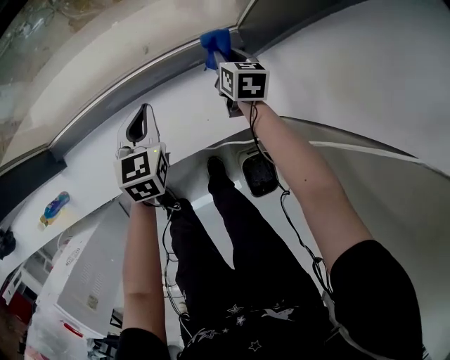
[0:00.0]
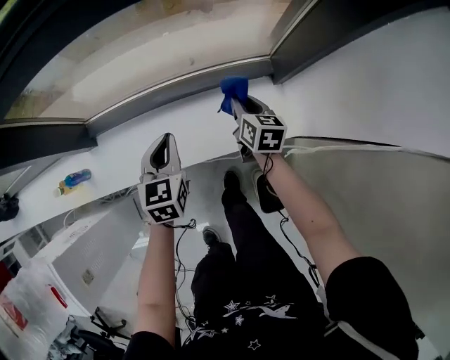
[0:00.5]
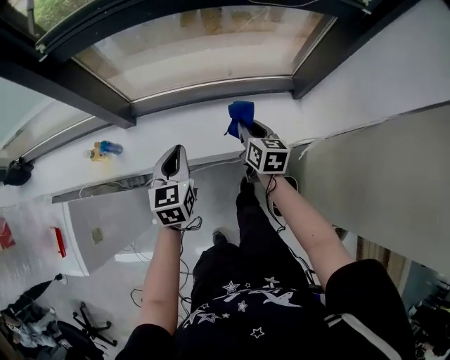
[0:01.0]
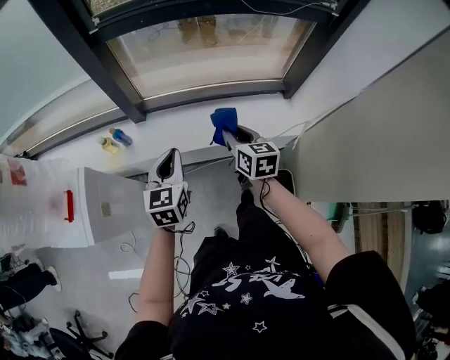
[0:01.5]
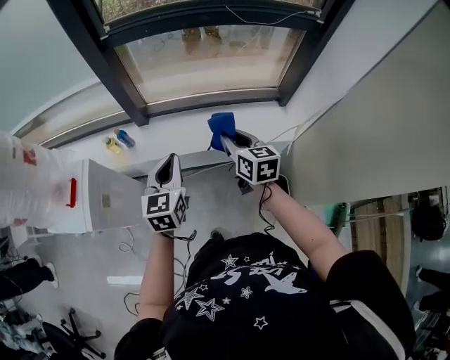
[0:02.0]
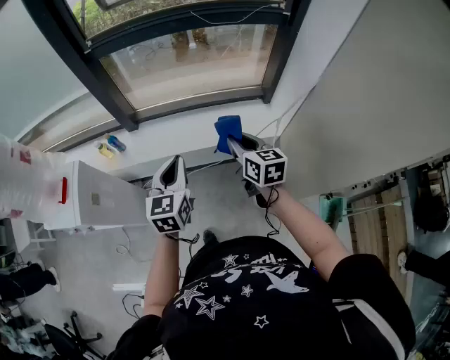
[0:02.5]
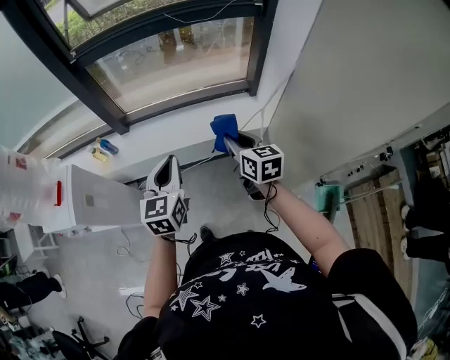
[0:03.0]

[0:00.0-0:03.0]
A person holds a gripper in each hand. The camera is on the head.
0.0 to 1.5 s: Both grippers are carried backward and to the left, approximately 50 cm. The two grippers go approximately 30 cm upward. The right gripper rotates roughly 20 degrees.
1.5 to 3.0 s: The two grippers go some 25 cm backward, to the right and upward.

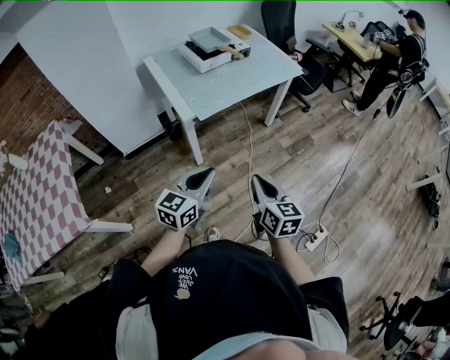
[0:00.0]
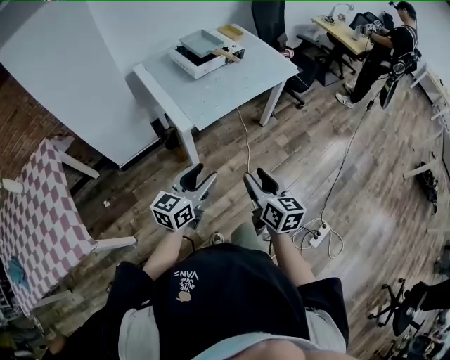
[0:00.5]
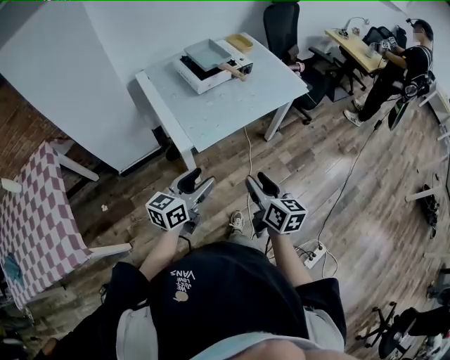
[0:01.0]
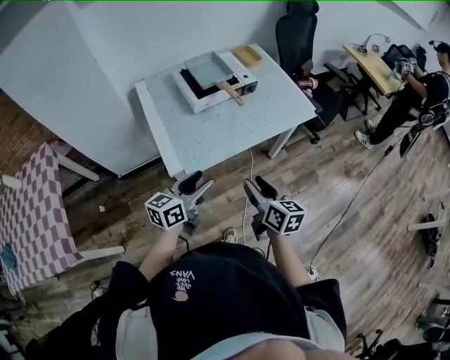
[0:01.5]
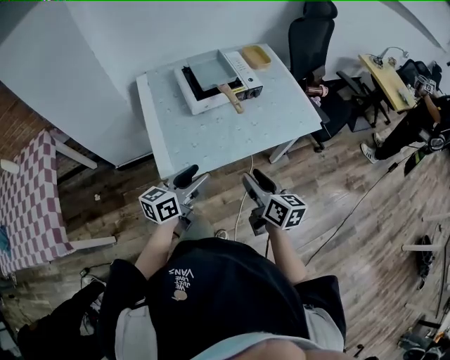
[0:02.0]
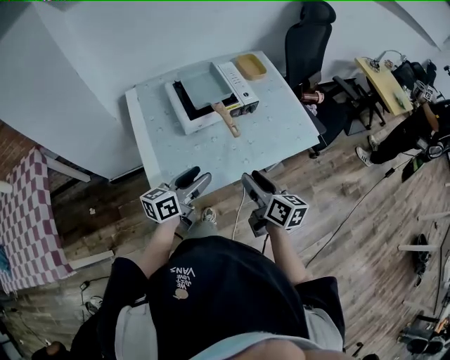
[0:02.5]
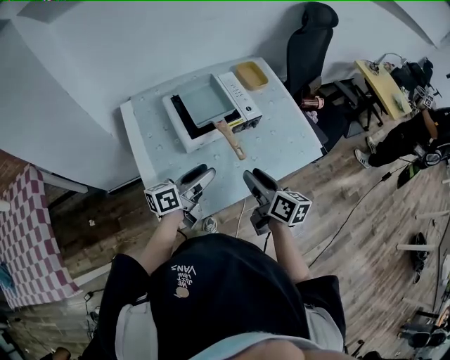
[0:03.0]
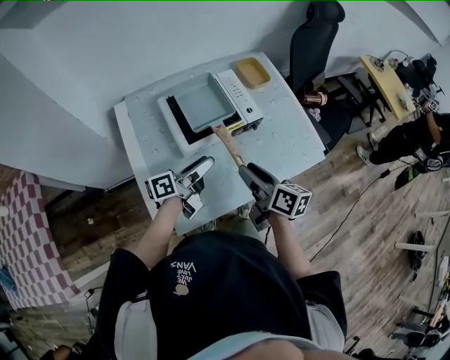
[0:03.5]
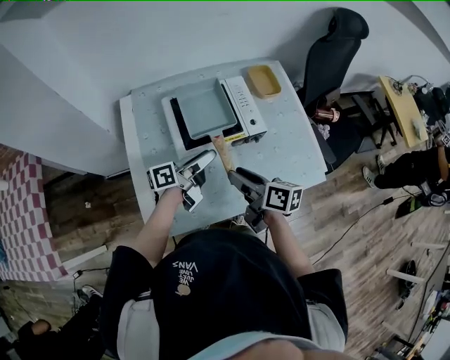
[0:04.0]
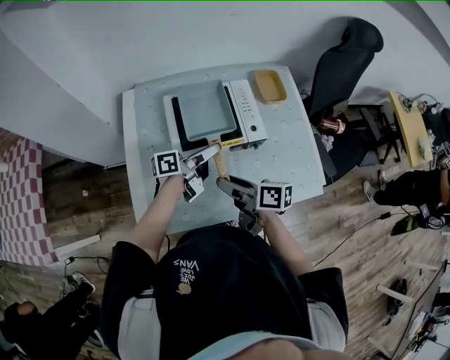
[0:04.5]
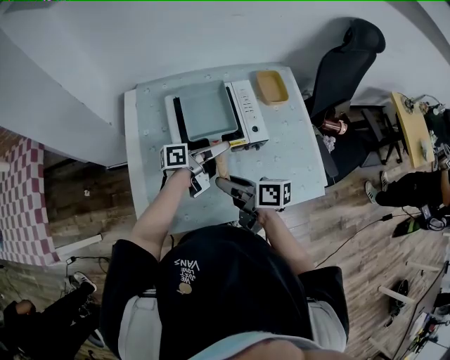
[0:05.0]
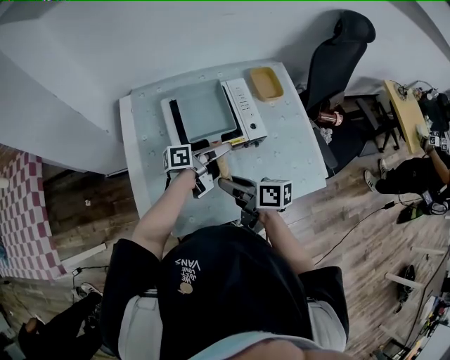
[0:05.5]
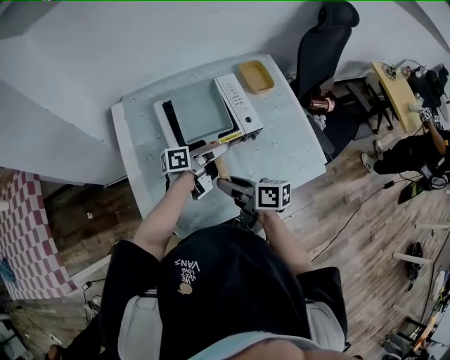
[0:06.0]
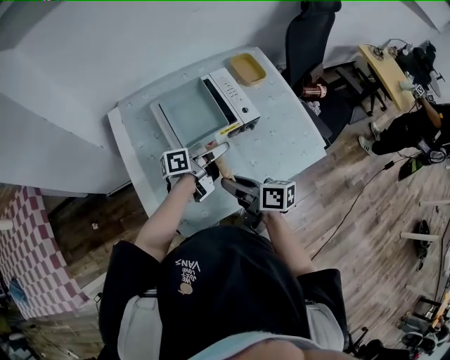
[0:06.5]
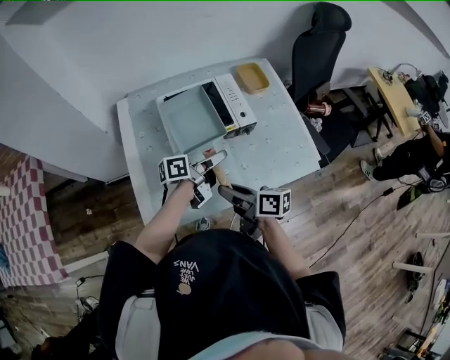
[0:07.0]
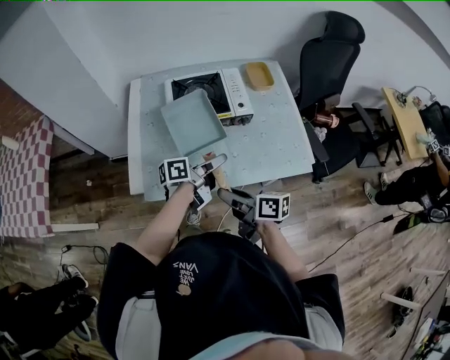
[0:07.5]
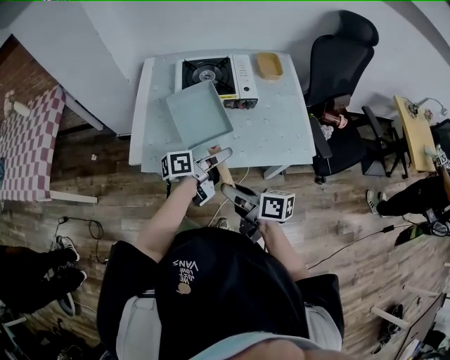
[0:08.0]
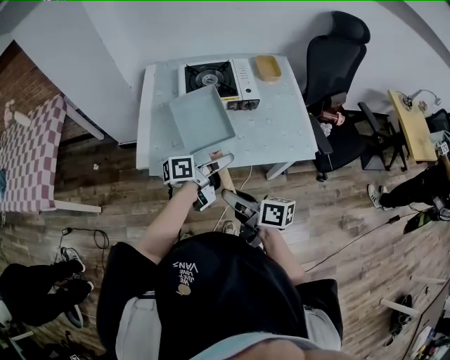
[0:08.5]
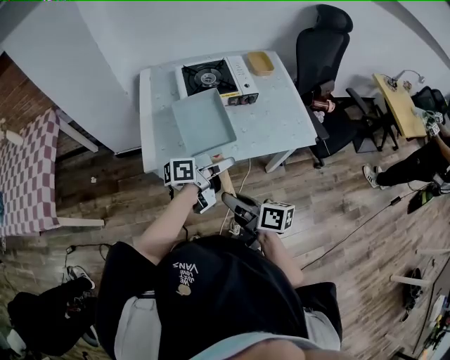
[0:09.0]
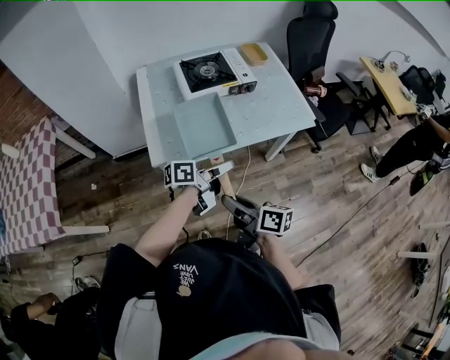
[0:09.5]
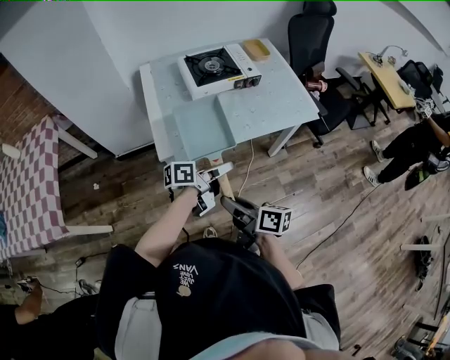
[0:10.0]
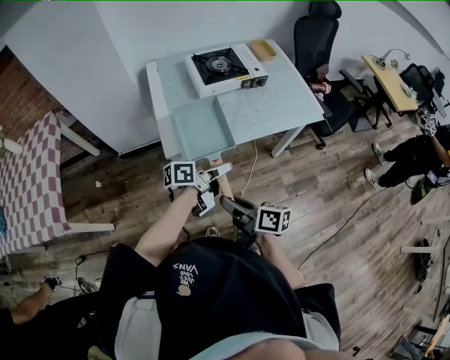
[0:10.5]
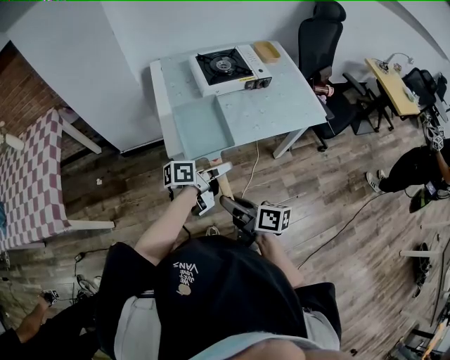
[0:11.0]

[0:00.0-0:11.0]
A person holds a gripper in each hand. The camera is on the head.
0.0 to 2.0 s: Both grippers move forward, approximately 35 cm. The left gripper rotates some 20 degrees, and opens. Meanwhile the right gripper rotates about 20 degrees, and opens.
2.0 to 3.5 s: The two grippers go some 20 cm forward. The left gripper turns by some 30 degrees.
3.5 to 5.5 s: The right gripper ends up some 5 cm from where it was, and rotates about 30 degrees; the left gripper travels forward and to the right by roughly 15 cm.
5.5 to 7.5 s: The right gripper is displaced backward and to the right by approximately 15 cm, while the left gripper heads backward, covering approximately 15 cm.
7.5 to 9.0 s: The two grippers go about 15 cm backward.
9.0 to 11.0 s: The grippers both shift to the left and backward by about 15 cm.

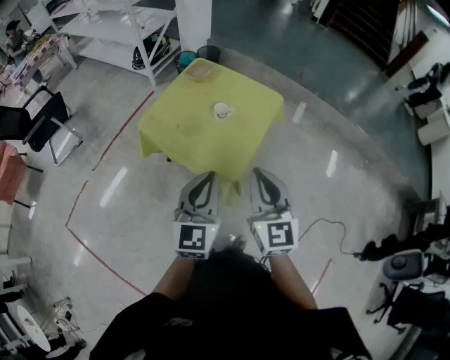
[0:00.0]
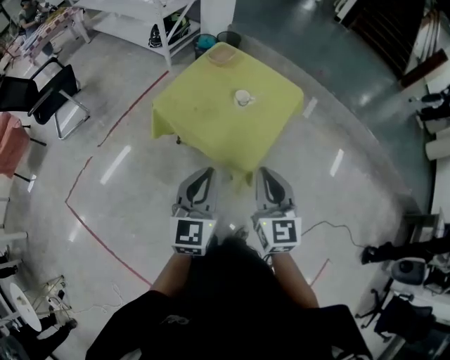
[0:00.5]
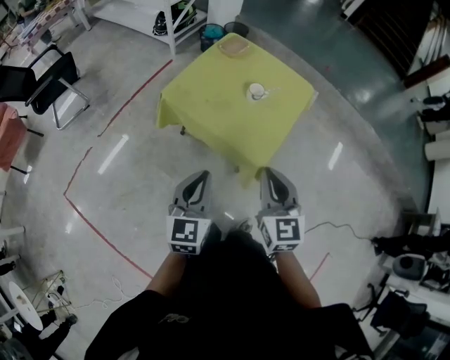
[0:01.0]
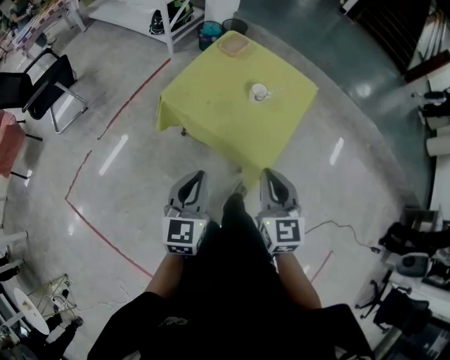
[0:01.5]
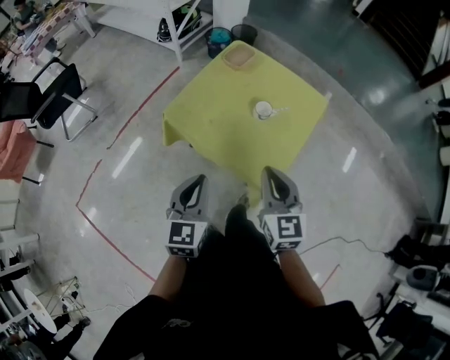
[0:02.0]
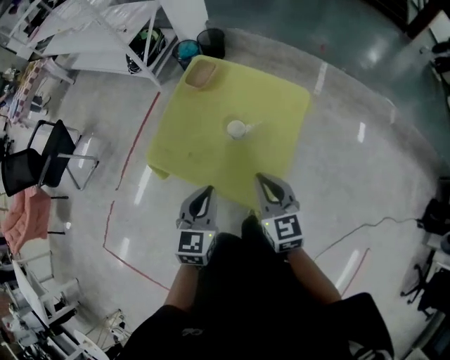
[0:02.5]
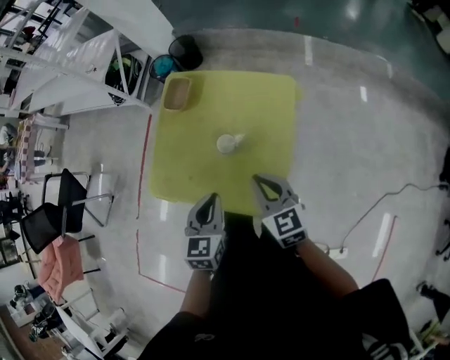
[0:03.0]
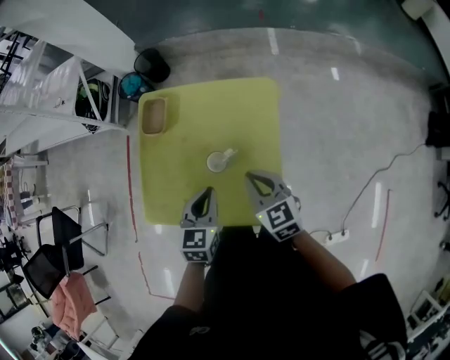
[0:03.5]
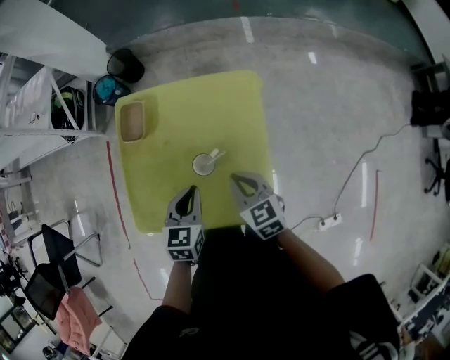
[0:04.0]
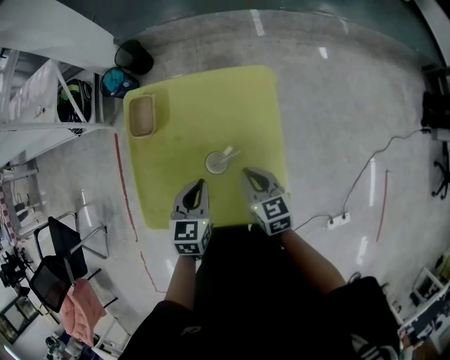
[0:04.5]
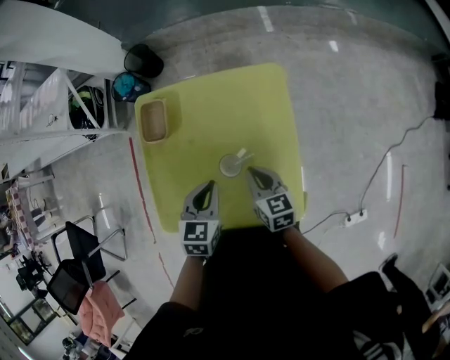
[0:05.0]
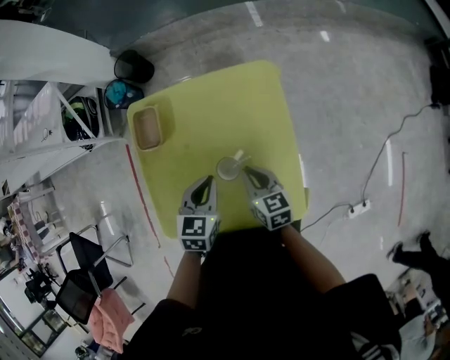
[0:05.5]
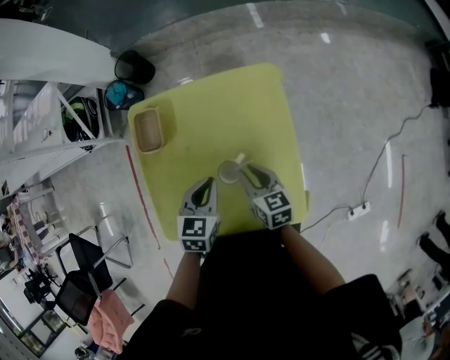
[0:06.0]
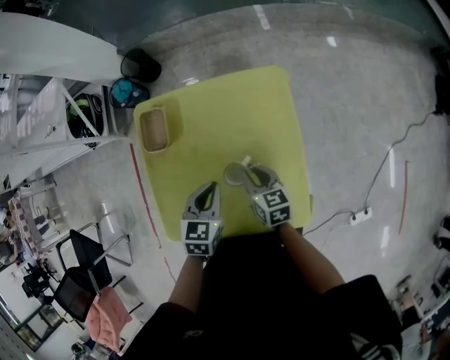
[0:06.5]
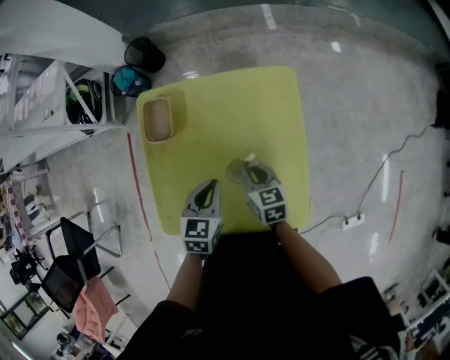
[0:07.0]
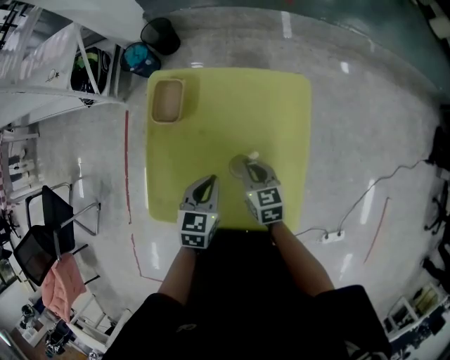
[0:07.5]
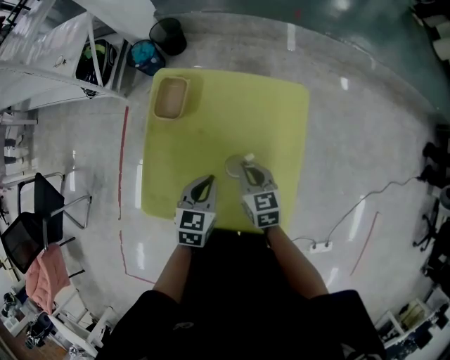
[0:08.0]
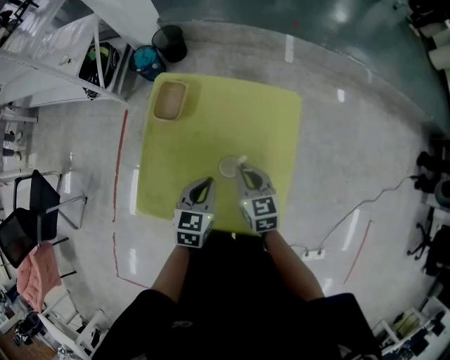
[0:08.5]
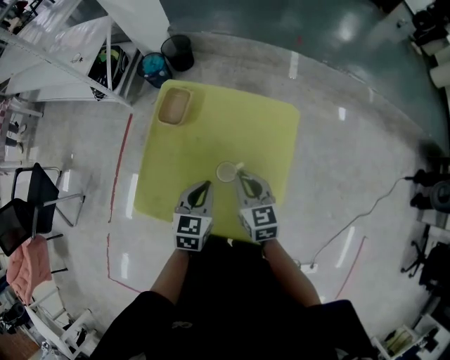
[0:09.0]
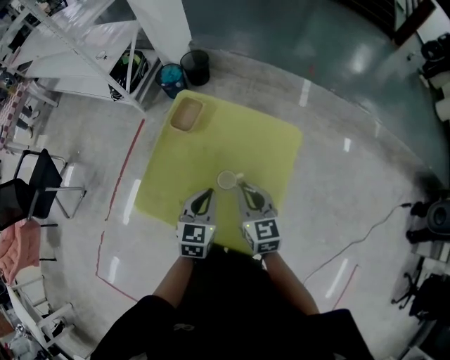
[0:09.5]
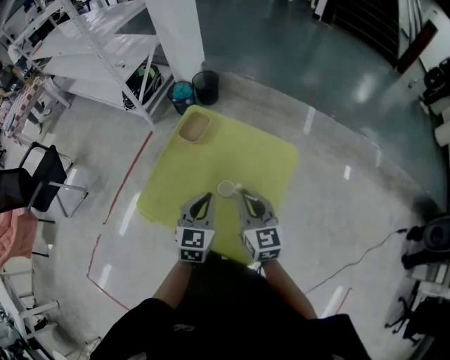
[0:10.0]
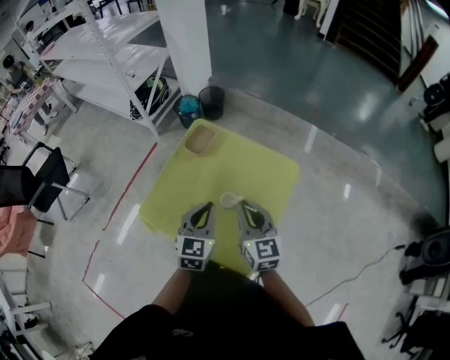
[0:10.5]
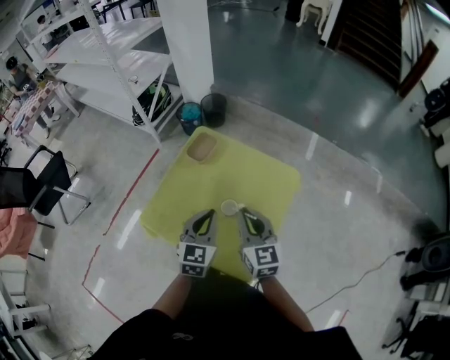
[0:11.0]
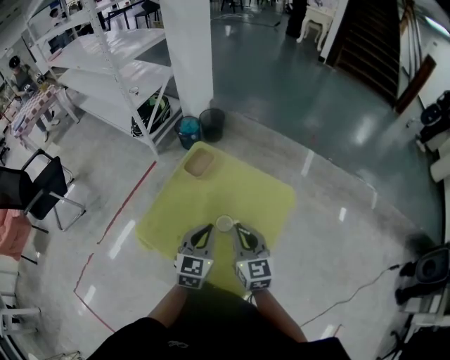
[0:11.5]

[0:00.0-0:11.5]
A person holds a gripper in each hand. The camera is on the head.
0.0 to 2.0 s: The right gripper travels forward, to the left and downward by about 20 cm; the left gripper goes about 20 cm to the left, downward and forward.
2.0 to 4.0 s: The grippers both shift forward and downward by about 35 cm. The right gripper turns by some 30 degrees, while the left gripper swivels approximately 40 degrees.
4.0 to 6.0 s: The right gripper is displaced downward by roughly 10 cm, and changes its angle by some 30 degrees; the left gripper goes approximately 5 cm forward.
6.0 to 7.5 s: The right gripper ends up about 5 cm from where it was.
7.5 to 9.5 s: The right gripper travels upward by roughly 15 cm, and rotates about 20 degrees, while the left gripper is displaced upward and backward by approximately 10 cm, and changes its angle by some 20 degrees.
9.5 to 11.5 s: The grippers both shift upward by roughly 5 cm.

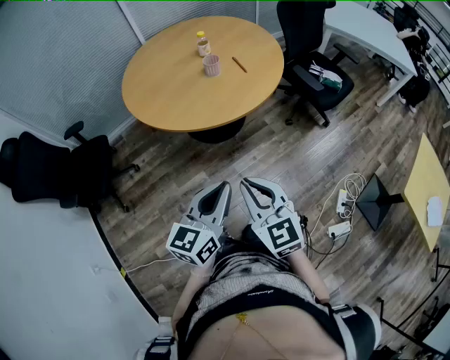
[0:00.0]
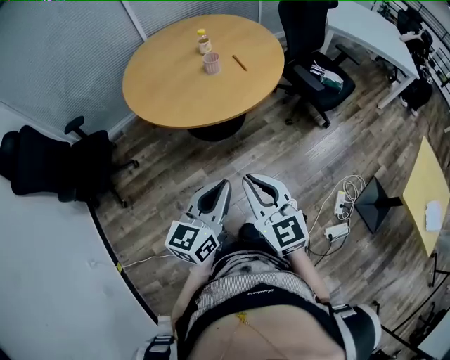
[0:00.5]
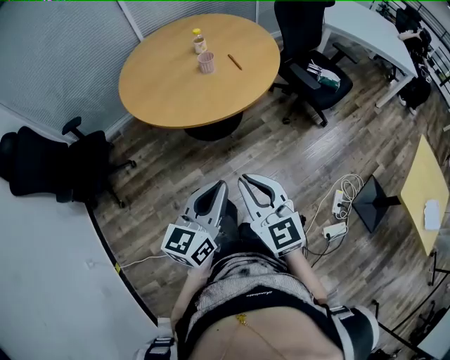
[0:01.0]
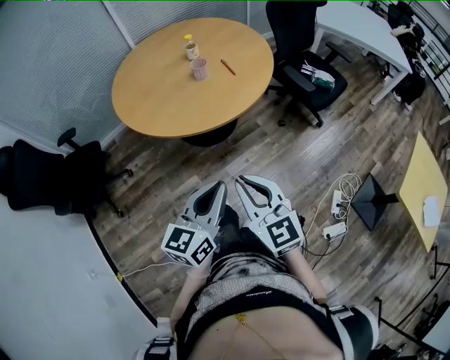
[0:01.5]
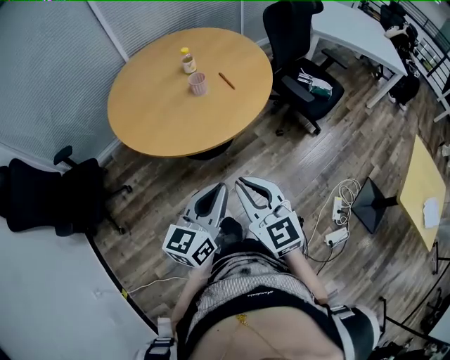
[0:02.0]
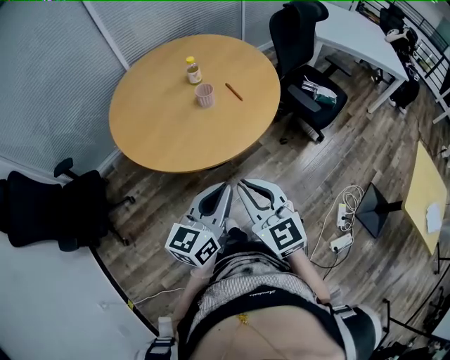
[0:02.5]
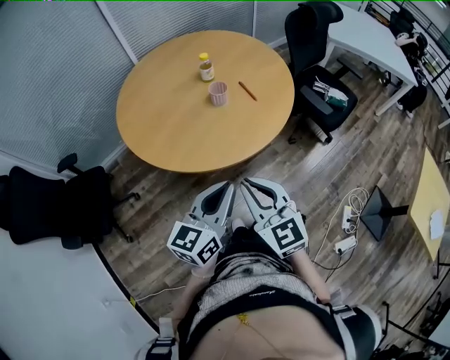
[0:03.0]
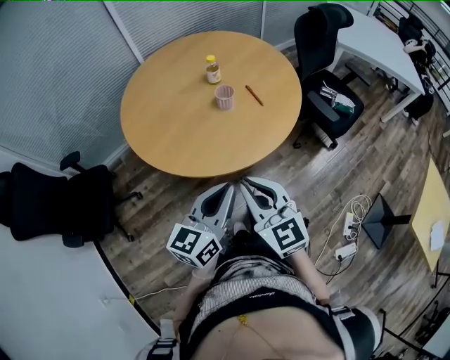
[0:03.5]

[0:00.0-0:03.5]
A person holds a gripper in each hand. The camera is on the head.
0.0 to 2.0 s: Both grippers move forward, roughly 10 cm.
2.0 to 3.5 s: The grippers both shift forward and to the left by approximately 15 cm.
